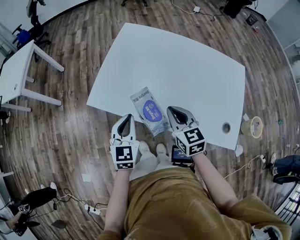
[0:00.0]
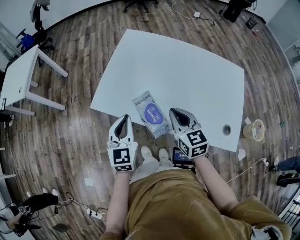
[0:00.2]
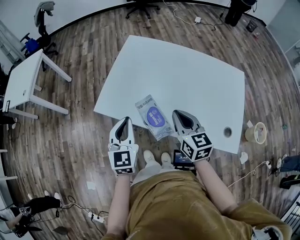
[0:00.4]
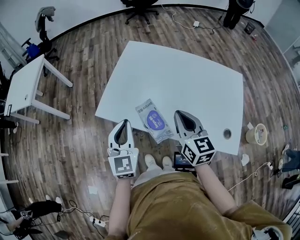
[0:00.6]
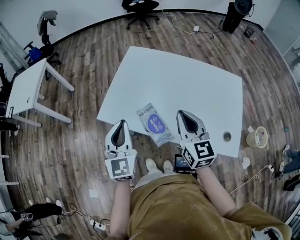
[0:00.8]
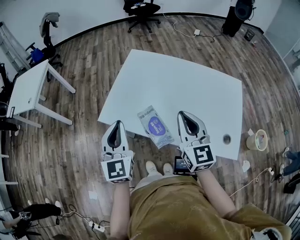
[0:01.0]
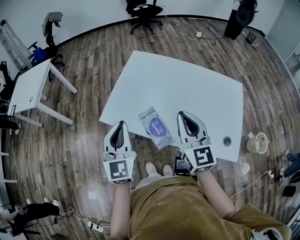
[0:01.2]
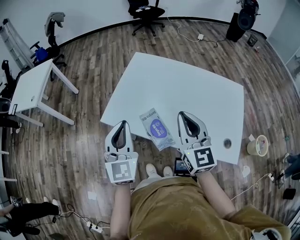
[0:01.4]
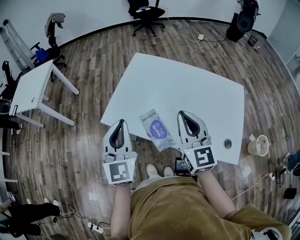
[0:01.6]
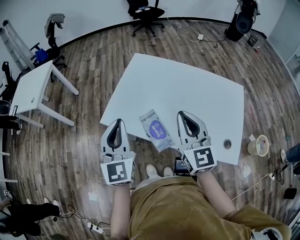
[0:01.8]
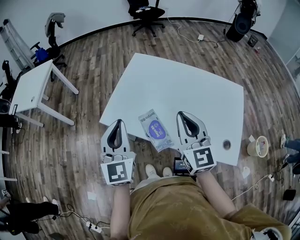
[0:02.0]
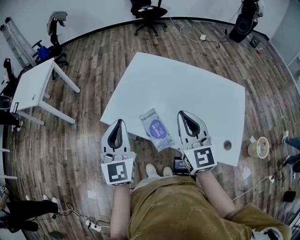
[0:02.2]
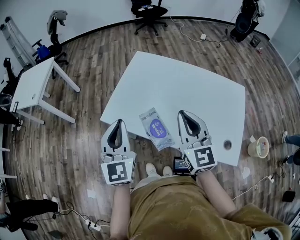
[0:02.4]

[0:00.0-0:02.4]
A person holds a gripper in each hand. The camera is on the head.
0:00.0 to 0:01.2: Both grippers travel together upward, some 15 cm. The right gripper swivels roughly 30 degrees.
0:01.2 to 0:02.4: There are only small adjustments of the grippers.

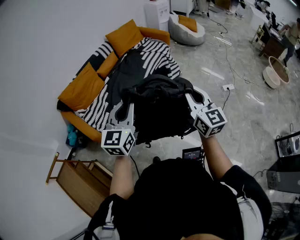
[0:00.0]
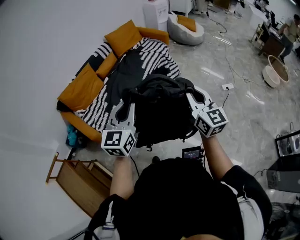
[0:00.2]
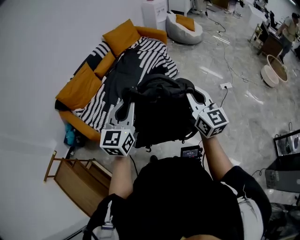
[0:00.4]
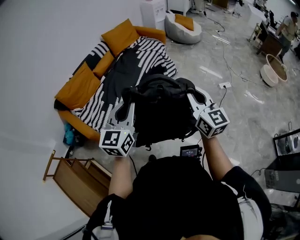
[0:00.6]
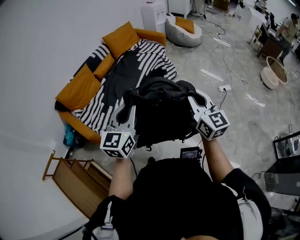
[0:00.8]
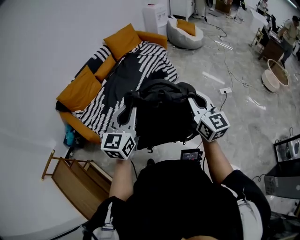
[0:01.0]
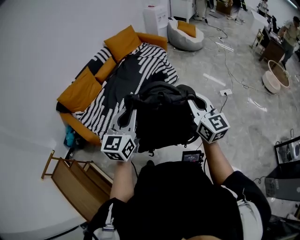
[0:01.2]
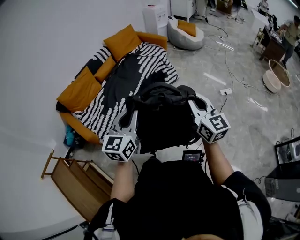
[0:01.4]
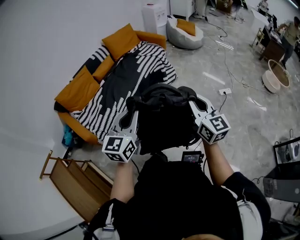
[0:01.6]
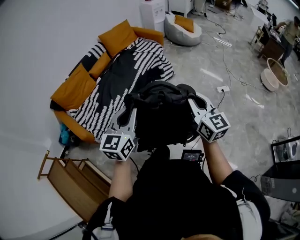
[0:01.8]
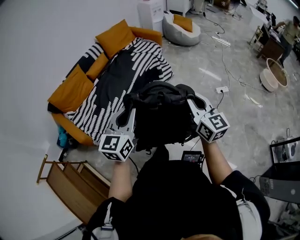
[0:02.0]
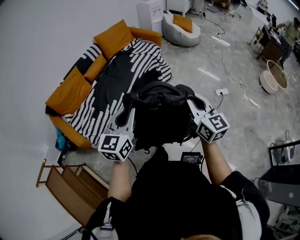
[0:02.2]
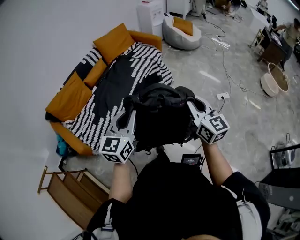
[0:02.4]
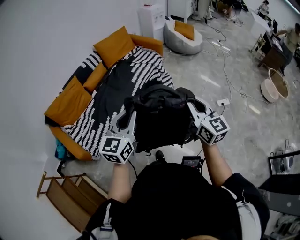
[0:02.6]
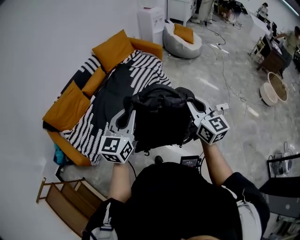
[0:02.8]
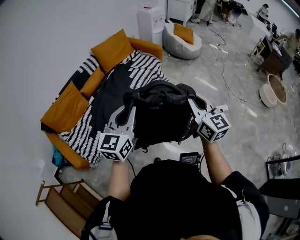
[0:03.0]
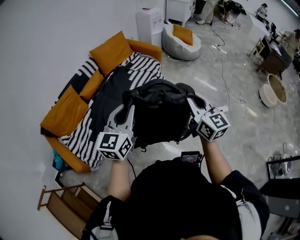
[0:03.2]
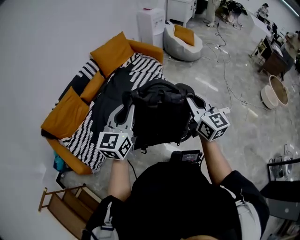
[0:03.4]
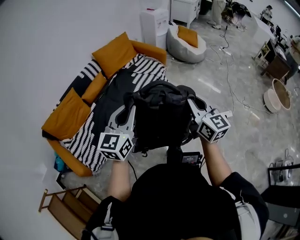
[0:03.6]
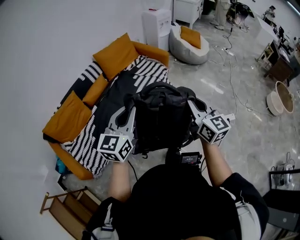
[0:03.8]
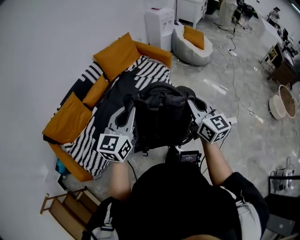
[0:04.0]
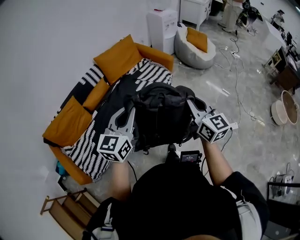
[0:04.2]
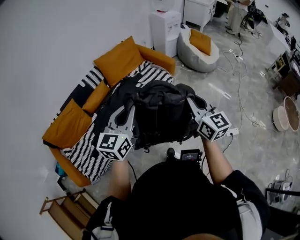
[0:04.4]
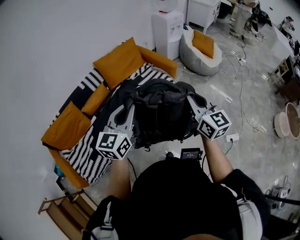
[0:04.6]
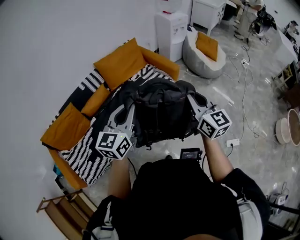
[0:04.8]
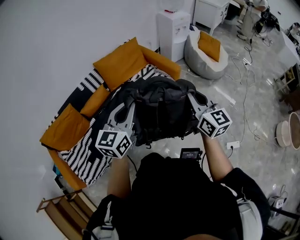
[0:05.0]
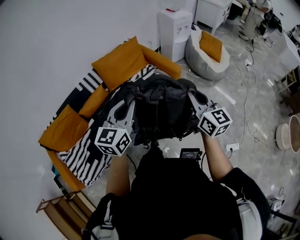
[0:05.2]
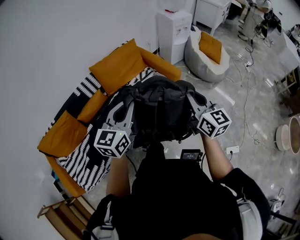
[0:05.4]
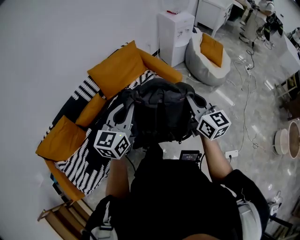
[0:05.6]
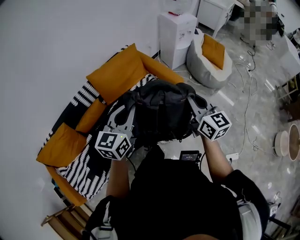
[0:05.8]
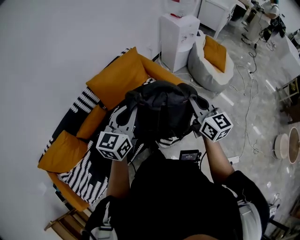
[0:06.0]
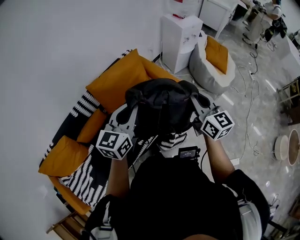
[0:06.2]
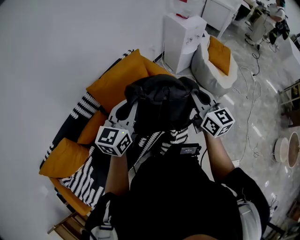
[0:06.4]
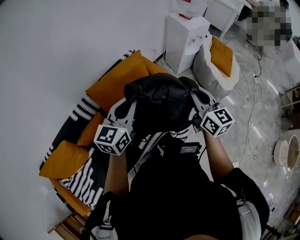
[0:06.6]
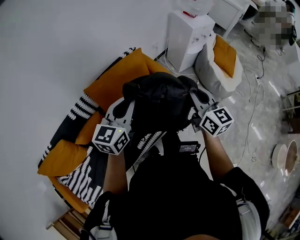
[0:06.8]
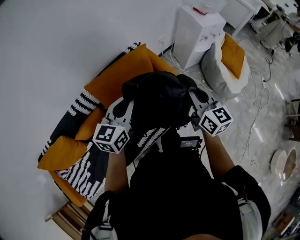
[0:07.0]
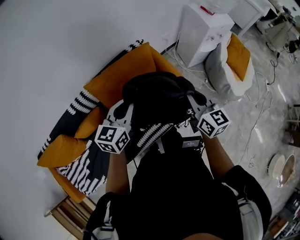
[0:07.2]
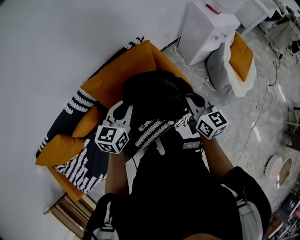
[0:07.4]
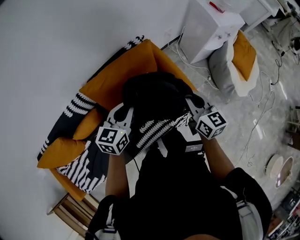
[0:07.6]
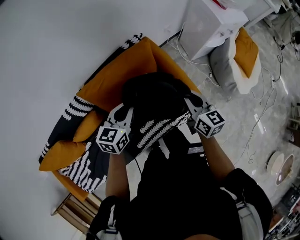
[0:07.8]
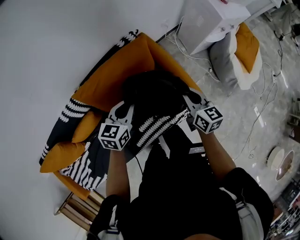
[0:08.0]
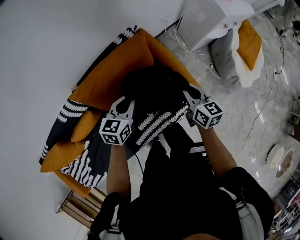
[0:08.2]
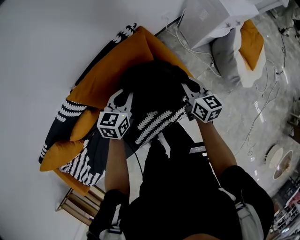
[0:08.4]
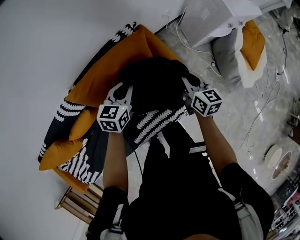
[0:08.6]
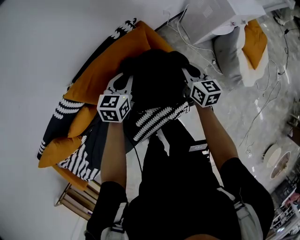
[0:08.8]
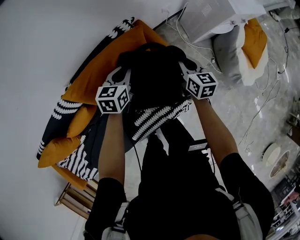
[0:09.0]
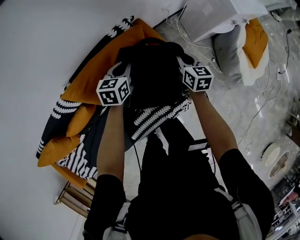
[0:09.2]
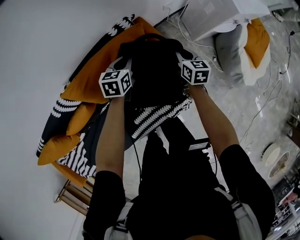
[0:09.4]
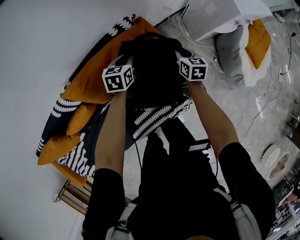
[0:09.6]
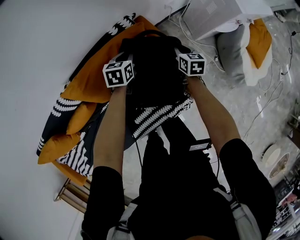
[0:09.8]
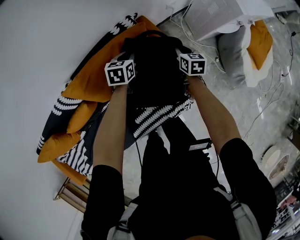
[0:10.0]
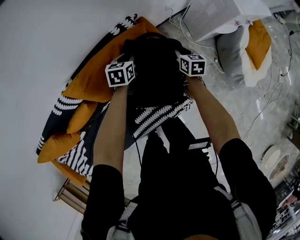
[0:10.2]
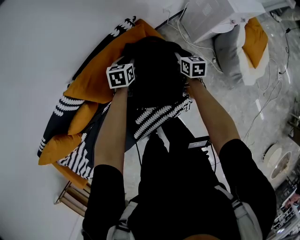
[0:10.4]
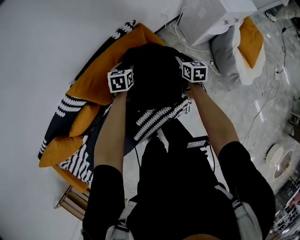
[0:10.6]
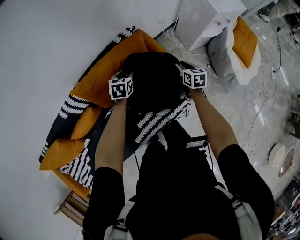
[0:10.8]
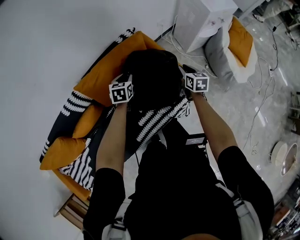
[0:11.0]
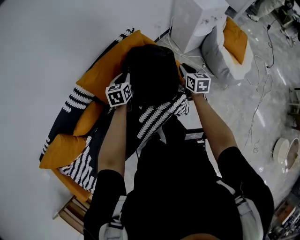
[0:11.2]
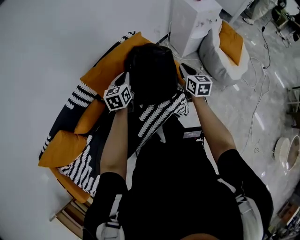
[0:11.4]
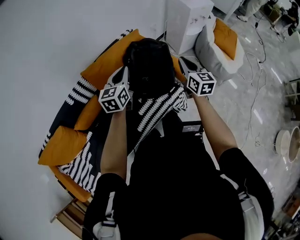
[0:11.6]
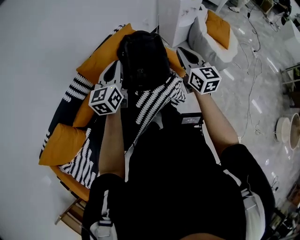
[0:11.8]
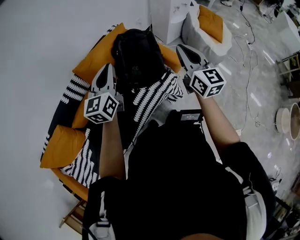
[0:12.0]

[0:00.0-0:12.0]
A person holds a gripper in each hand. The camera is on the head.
0:00.0 to 0:01.6: The grippers both shift to the right by roughly 10 cm.
0:01.6 to 0:03.0: Both grippers move forward, some 25 cm.
0:03.0 to 0:04.4: Both grippers move forward, approximately 30 cm.
0:04.4 to 0:06.0: The grippers both shift forward by roughly 40 cm.
0:06.0 to 0:07.6: Both grippers move forward and downward, some 30 cm. The left gripper swivels some 20 degrees.
0:07.6 to 0:09.0: The right gripper is displaced downward and forward by approximately 25 cm. The left gripper goes approximately 25 cm forward and downward.
0:09.0 to 0:10.4: Both grippers move downward, about 10 cm.
0:10.4 to 0:12.0: The left gripper travels upward and backward by about 50 cm, tips its fingers upward by approximately 50 degrees, and closes up. The right gripper heads backward and upward, covering about 60 cm, and angles its fingers upward, by about 40 degrees.

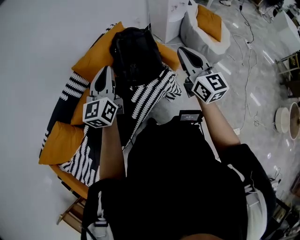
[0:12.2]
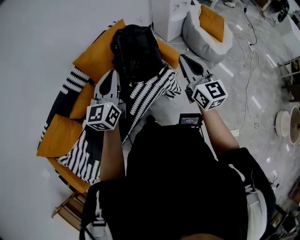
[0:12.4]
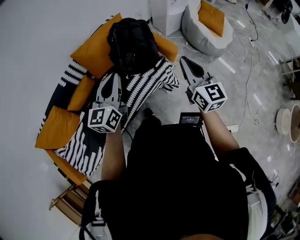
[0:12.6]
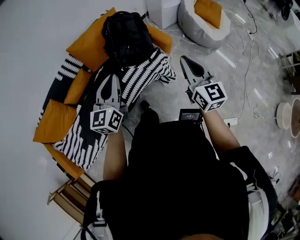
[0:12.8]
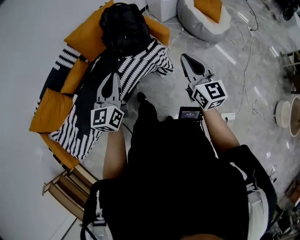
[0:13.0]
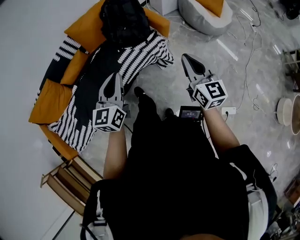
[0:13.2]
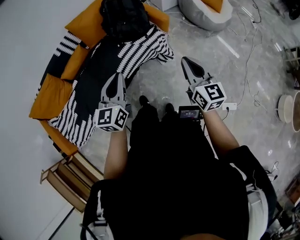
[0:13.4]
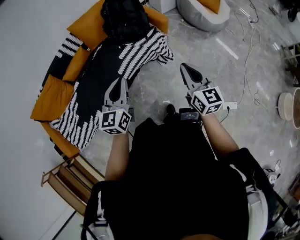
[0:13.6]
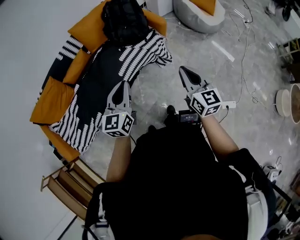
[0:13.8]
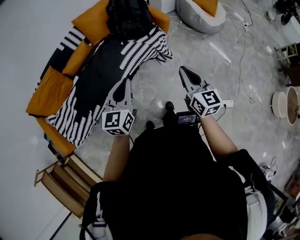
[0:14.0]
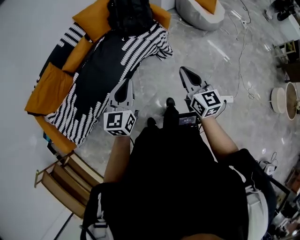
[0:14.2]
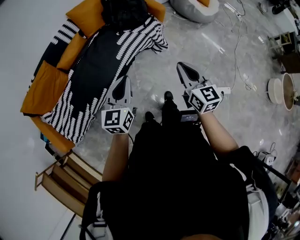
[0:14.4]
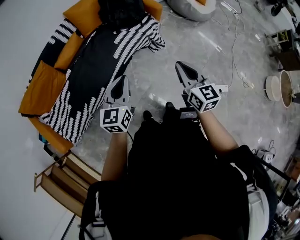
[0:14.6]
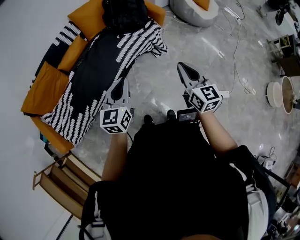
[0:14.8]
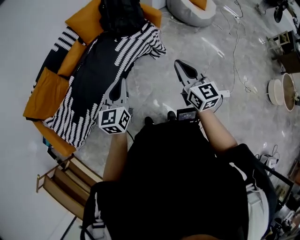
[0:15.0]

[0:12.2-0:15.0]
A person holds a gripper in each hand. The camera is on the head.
0:12.2 to 0:13.6: The two grippers go roughly 35 cm backward.
0:13.6 to 0:15.0: The grippers both shift backward and to the left by some 15 cm.

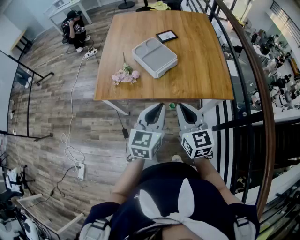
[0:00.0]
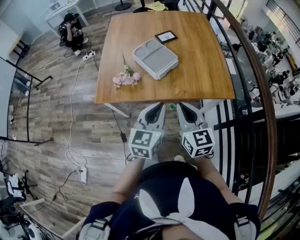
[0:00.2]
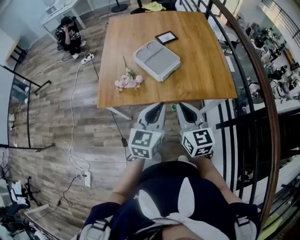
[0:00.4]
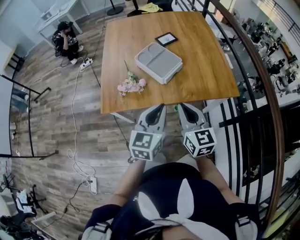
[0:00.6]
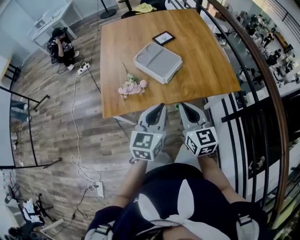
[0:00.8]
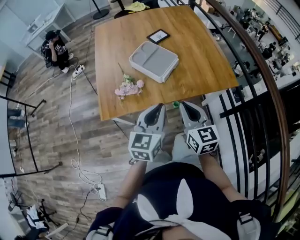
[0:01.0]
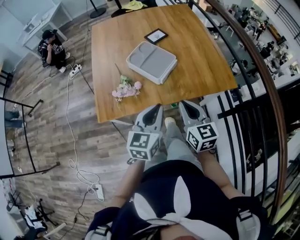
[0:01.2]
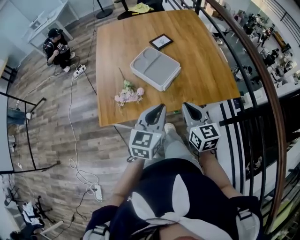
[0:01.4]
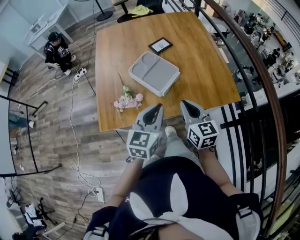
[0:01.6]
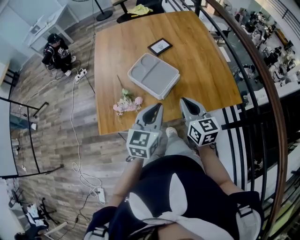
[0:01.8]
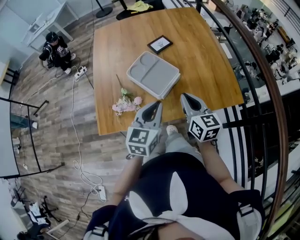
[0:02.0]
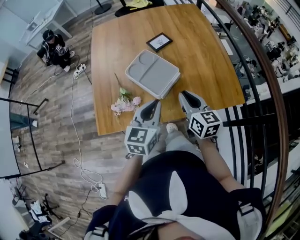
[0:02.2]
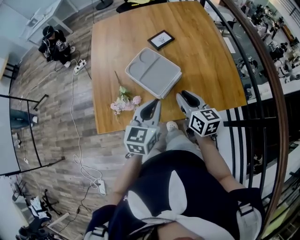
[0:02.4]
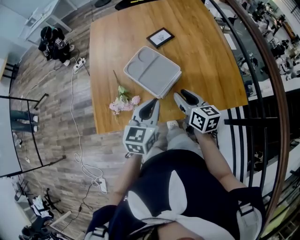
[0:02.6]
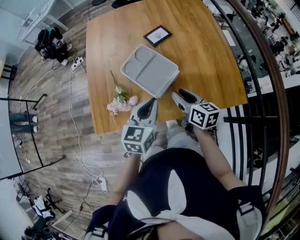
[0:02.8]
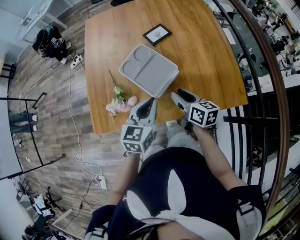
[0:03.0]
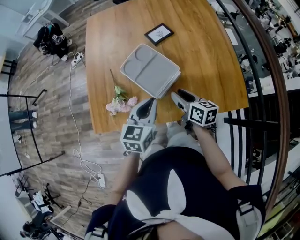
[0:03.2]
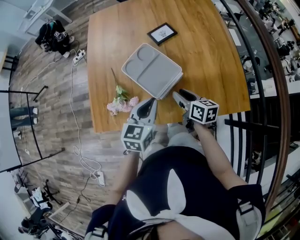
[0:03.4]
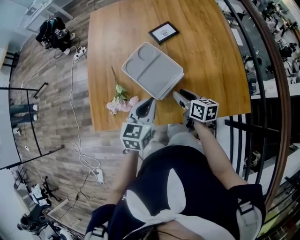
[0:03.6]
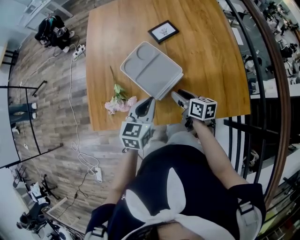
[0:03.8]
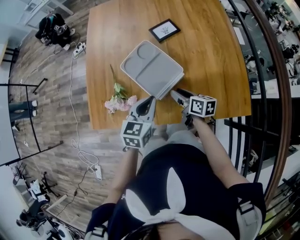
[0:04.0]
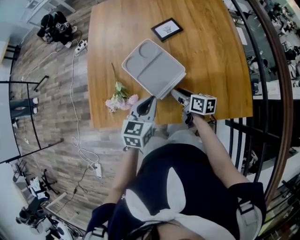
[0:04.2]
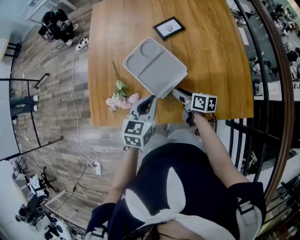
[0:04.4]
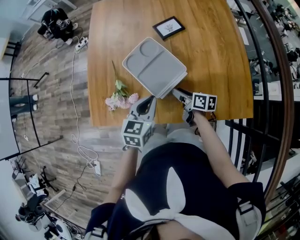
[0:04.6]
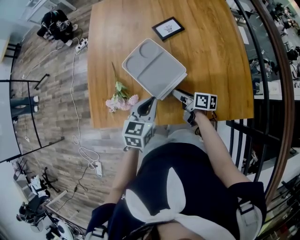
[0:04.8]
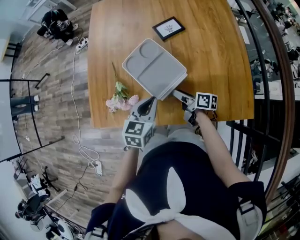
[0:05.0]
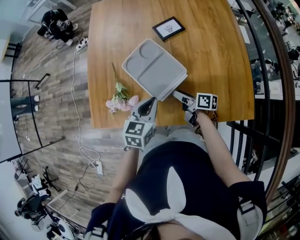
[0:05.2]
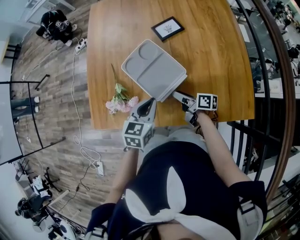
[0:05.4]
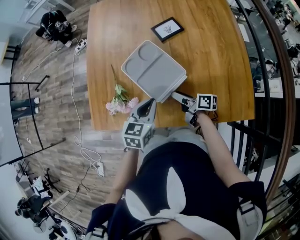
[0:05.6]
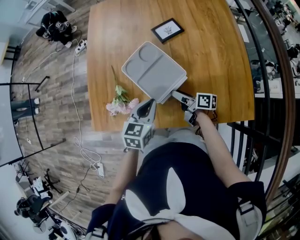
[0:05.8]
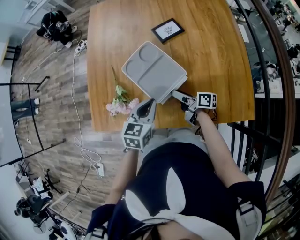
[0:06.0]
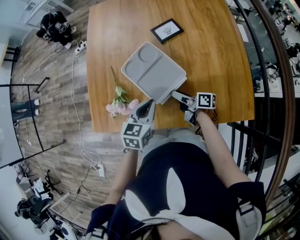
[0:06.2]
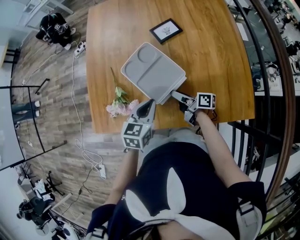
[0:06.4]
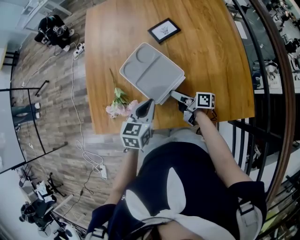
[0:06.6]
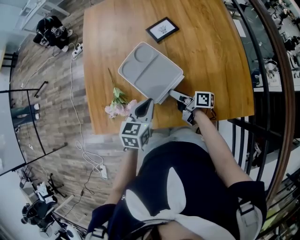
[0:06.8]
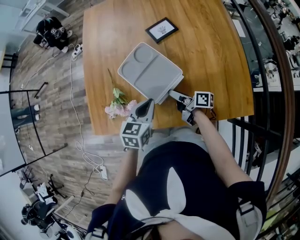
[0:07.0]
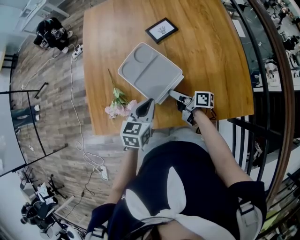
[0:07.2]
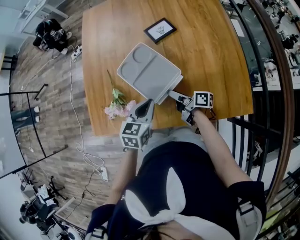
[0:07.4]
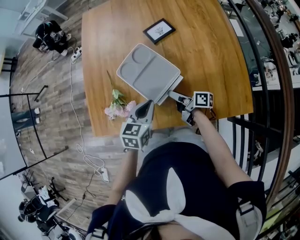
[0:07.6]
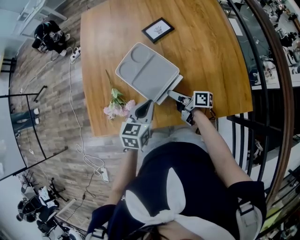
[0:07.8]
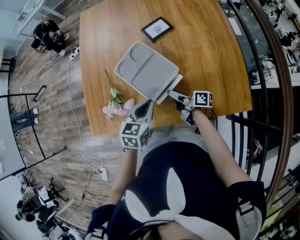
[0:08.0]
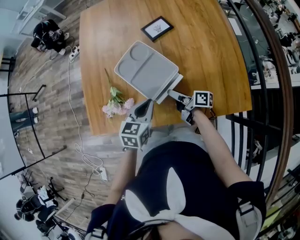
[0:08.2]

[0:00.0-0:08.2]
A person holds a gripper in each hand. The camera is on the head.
0:00.0 to 0:01.6: The grippers both shift forward and to the left by roughly 15 cm.
0:01.6 to 0:03.2: Both grippers move forward and downward, roughly 15 cm. The right gripper rotates some 30 degrees, and opens.
0:03.2 to 0:05.0: The right gripper moves downward, about 10 cm, and rotates roughly 30 degrees, while the left gripper shifts roughly 5 cm downward.
0:05.0 to 0:08.2: The grippers make only small movements.
